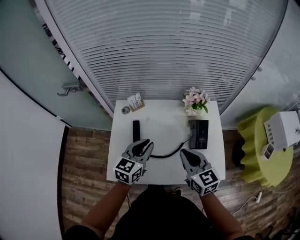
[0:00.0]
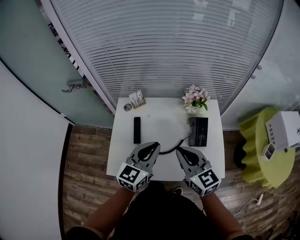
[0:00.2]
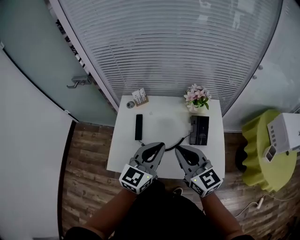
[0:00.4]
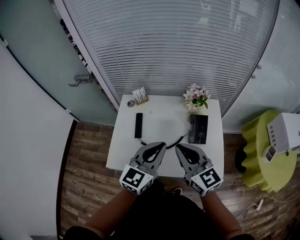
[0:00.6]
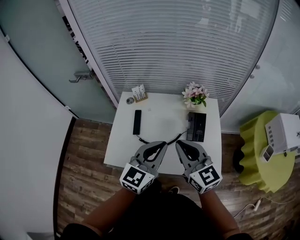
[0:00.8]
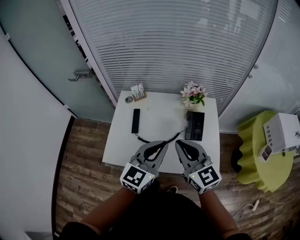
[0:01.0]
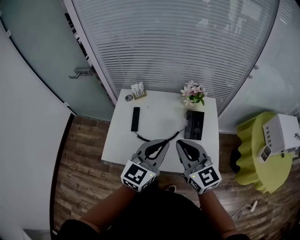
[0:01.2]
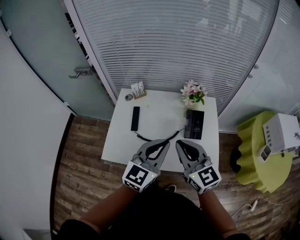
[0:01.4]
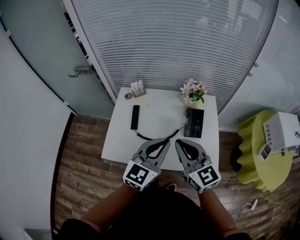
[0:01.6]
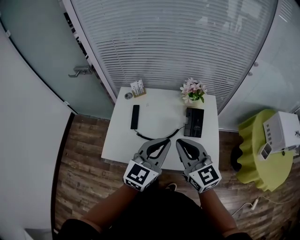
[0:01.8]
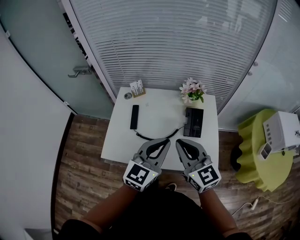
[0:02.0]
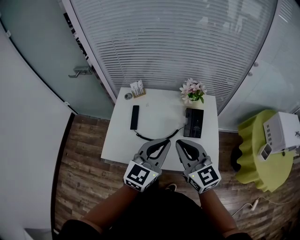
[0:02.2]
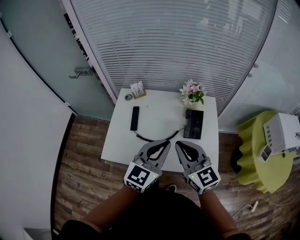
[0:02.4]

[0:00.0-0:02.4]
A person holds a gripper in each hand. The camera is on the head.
0:00.0 to 0:01.2: The left gripper goes approximately 20 cm backward, to the right and upward. Meanwhile the right gripper is displaced backward and upward by roughly 10 cm.
0:01.2 to 0:02.4: The grippers move only a little.

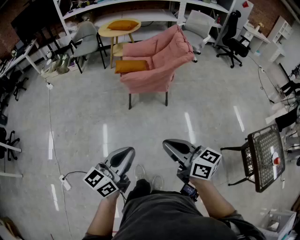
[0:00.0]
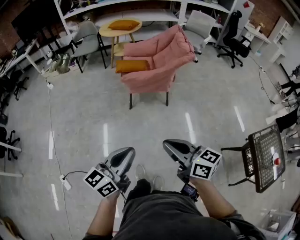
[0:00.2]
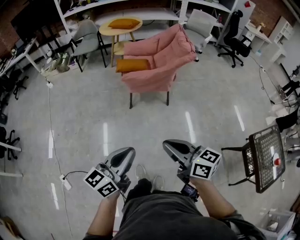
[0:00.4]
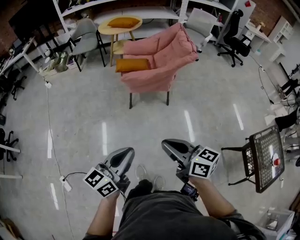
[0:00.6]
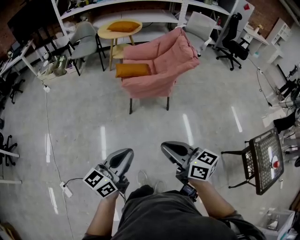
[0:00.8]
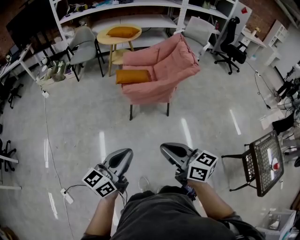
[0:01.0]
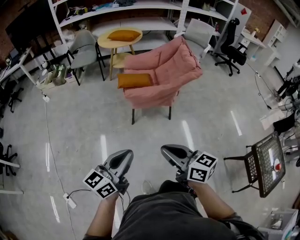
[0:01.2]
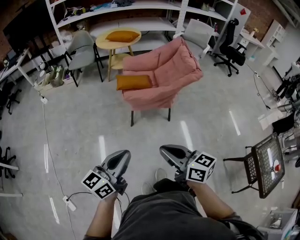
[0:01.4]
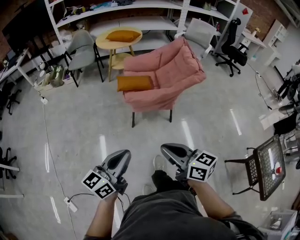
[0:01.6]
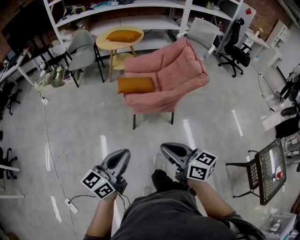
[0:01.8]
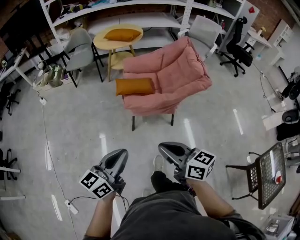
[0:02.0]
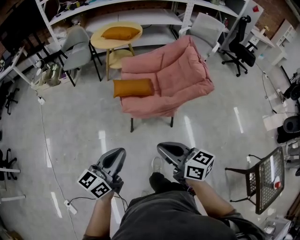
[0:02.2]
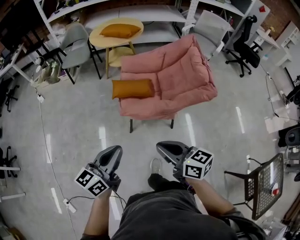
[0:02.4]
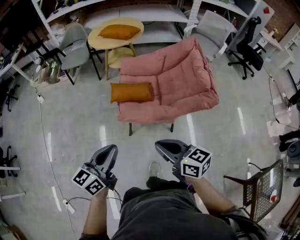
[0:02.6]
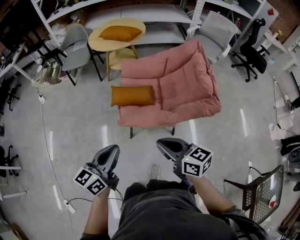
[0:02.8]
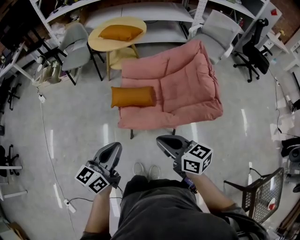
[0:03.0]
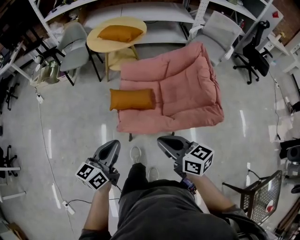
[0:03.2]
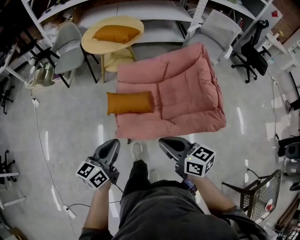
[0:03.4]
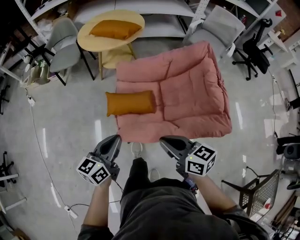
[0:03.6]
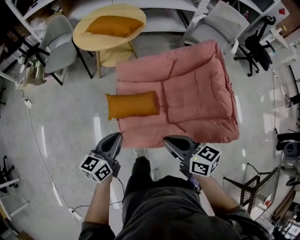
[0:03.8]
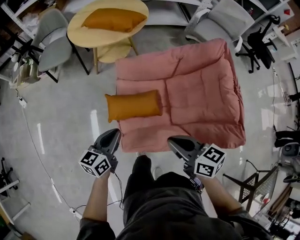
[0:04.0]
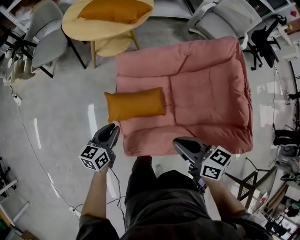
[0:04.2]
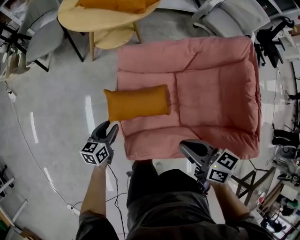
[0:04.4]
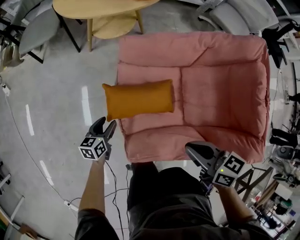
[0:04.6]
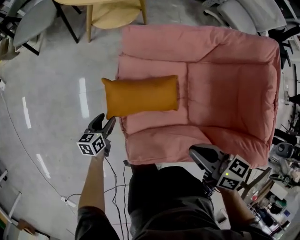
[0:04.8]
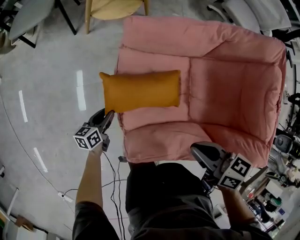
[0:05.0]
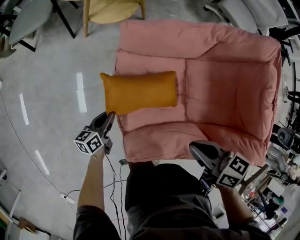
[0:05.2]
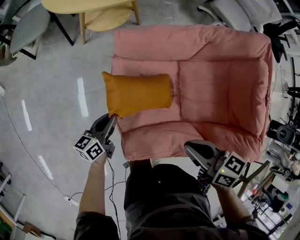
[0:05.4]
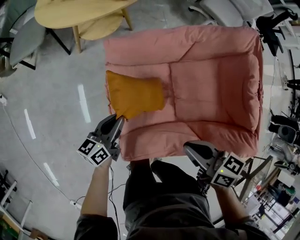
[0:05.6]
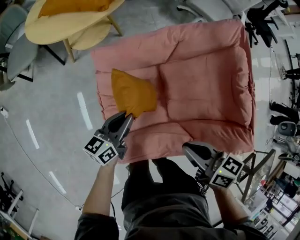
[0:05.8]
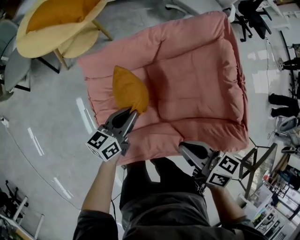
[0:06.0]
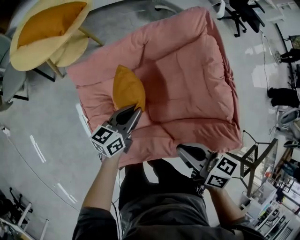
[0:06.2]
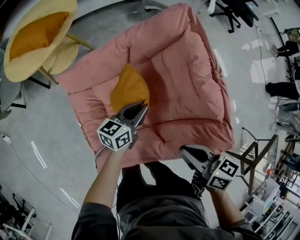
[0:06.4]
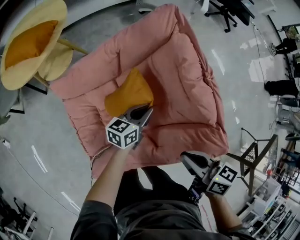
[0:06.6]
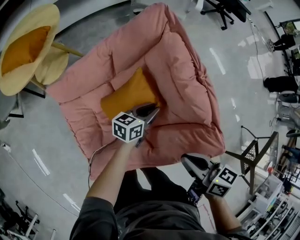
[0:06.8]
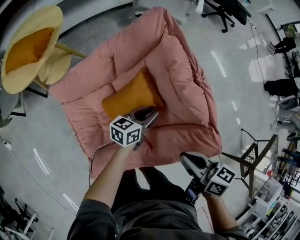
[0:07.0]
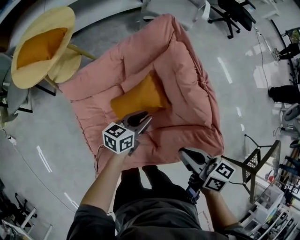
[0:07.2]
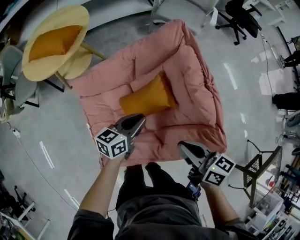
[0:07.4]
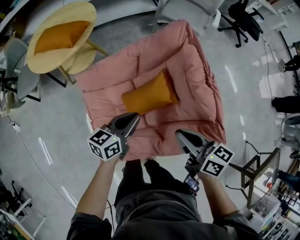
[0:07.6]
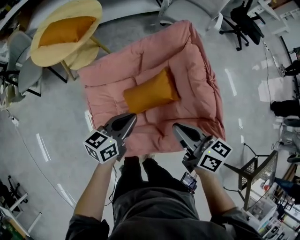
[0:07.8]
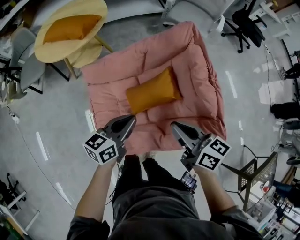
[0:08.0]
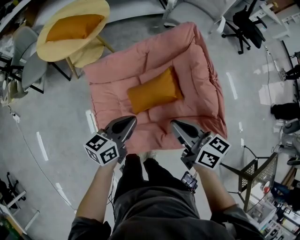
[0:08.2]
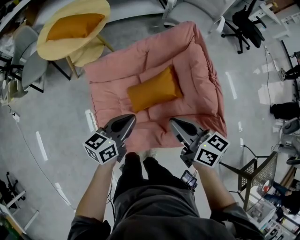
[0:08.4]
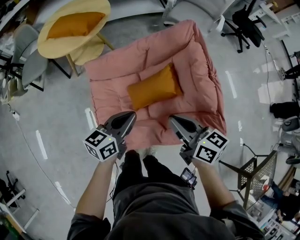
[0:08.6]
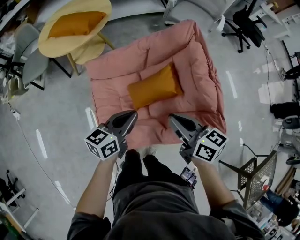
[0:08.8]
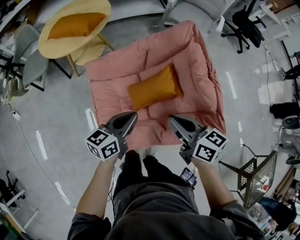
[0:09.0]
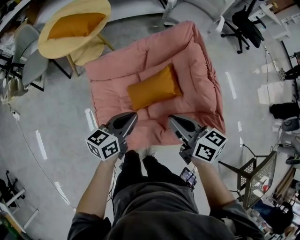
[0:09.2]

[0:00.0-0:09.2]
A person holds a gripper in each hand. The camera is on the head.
0:00.0 to 0:01.6: Both grippers travel together forward and to the left, roughly 25 cm.
0:01.6 to 0:03.0: The two grippers go some 40 cm forward.
0:03.0 to 0:04.6: The left gripper shifts roughly 60 cm downward and forward, rotates roughly 30 degrees, and opens up. Meanwhile the right gripper heads forward and downward, covering approximately 40 cm, and turns by about 20 degrees.
0:04.6 to 0:06.2: The right gripper is displaced to the right by roughly 15 cm; the left gripper heads to the right and upward, covering approximately 40 cm, rotates approximately 30 degrees, and closes up.
0:06.2 to 0:07.6: The left gripper moves upward, roughly 10 cm, and reaches some 20 cm to the right, then returns; the right gripper heads to the right and upward, covering some 10 cm.
0:07.6 to 0:09.2: The right gripper is displaced to the left by some 5 cm; the left gripper shifts some 5 cm backward.

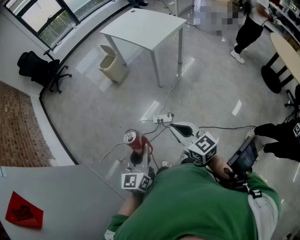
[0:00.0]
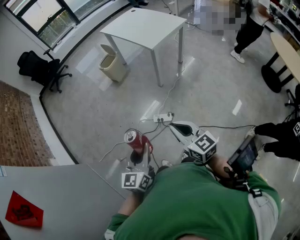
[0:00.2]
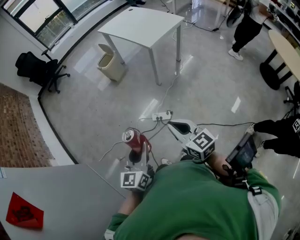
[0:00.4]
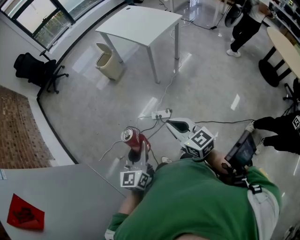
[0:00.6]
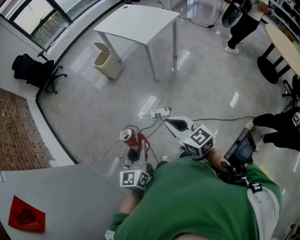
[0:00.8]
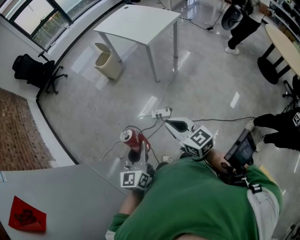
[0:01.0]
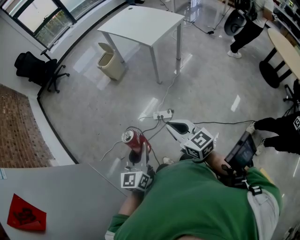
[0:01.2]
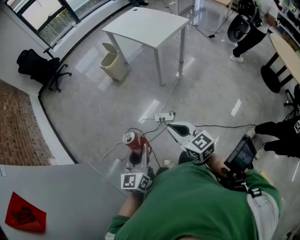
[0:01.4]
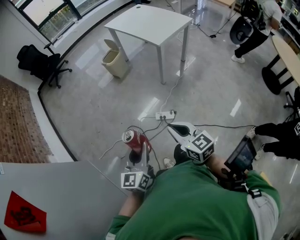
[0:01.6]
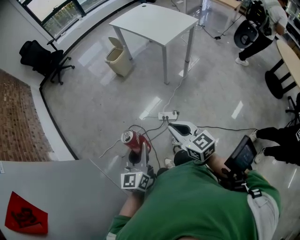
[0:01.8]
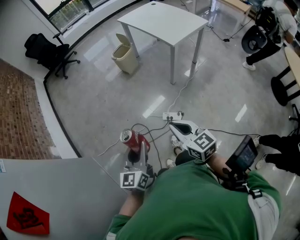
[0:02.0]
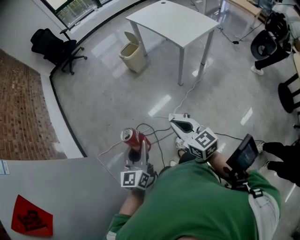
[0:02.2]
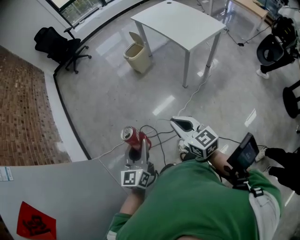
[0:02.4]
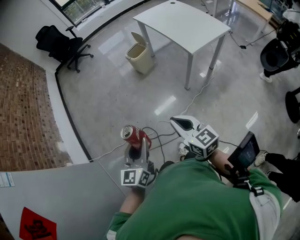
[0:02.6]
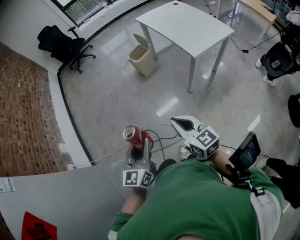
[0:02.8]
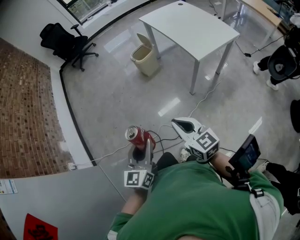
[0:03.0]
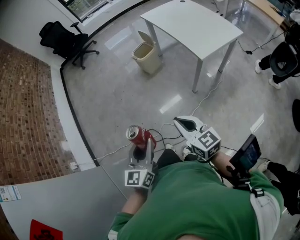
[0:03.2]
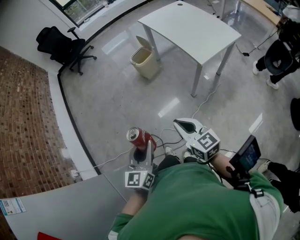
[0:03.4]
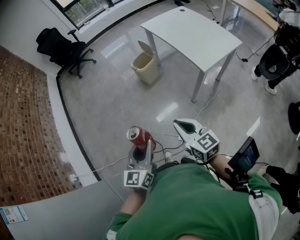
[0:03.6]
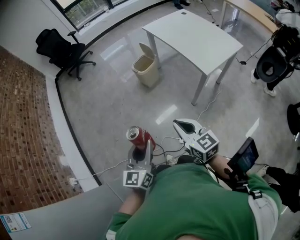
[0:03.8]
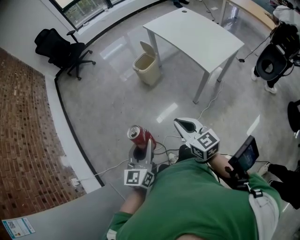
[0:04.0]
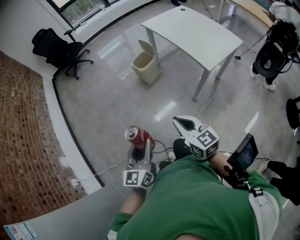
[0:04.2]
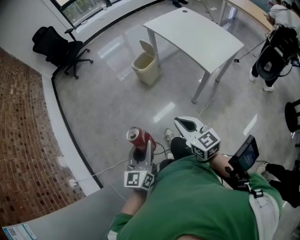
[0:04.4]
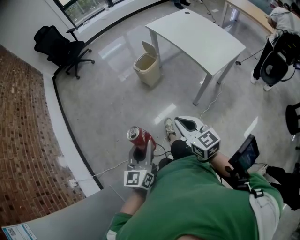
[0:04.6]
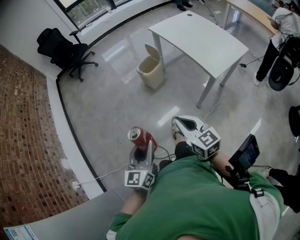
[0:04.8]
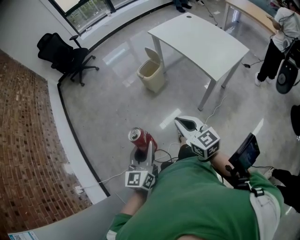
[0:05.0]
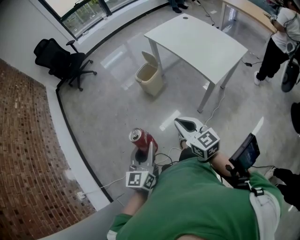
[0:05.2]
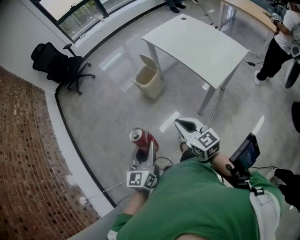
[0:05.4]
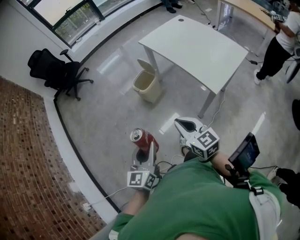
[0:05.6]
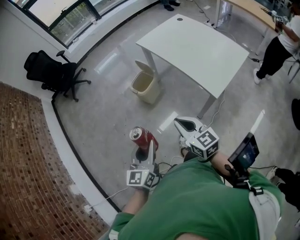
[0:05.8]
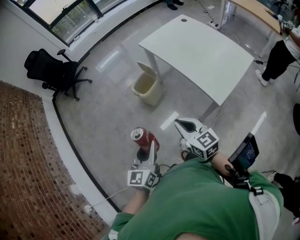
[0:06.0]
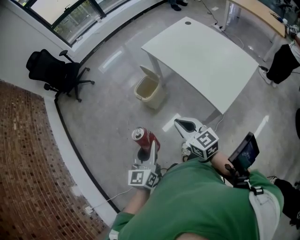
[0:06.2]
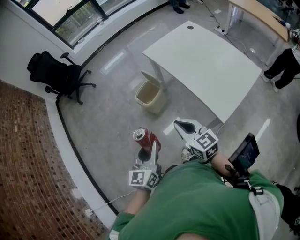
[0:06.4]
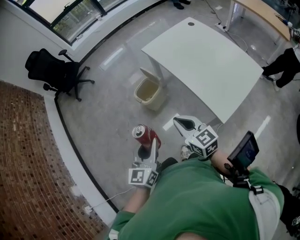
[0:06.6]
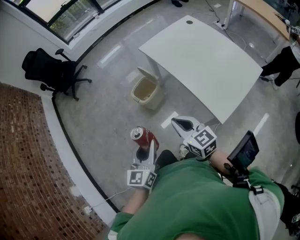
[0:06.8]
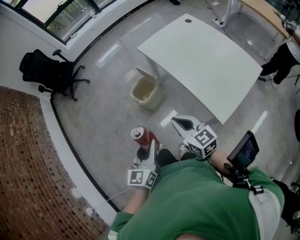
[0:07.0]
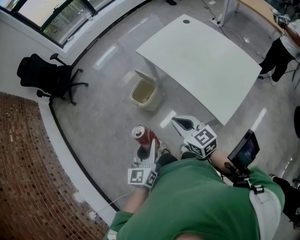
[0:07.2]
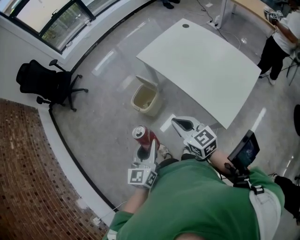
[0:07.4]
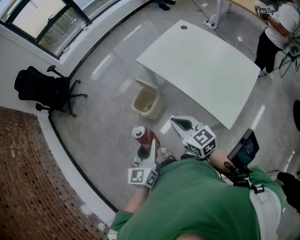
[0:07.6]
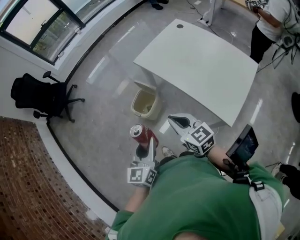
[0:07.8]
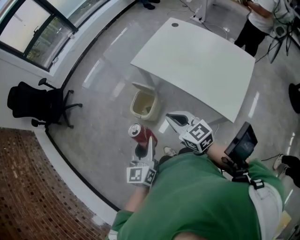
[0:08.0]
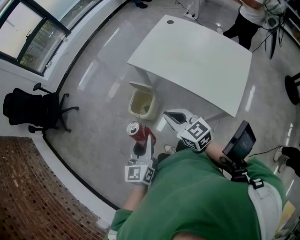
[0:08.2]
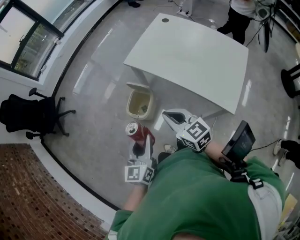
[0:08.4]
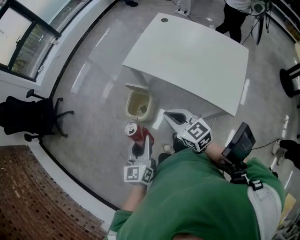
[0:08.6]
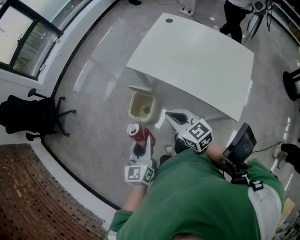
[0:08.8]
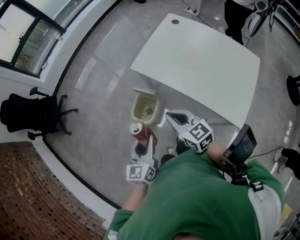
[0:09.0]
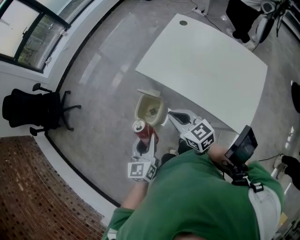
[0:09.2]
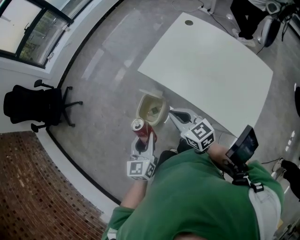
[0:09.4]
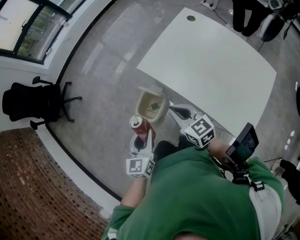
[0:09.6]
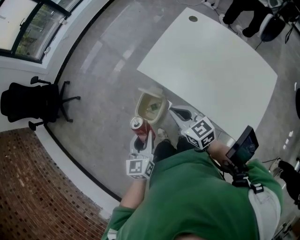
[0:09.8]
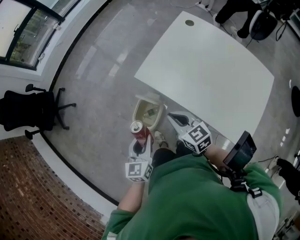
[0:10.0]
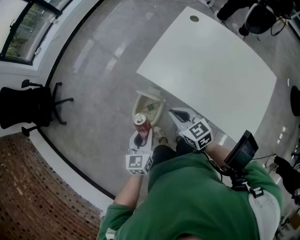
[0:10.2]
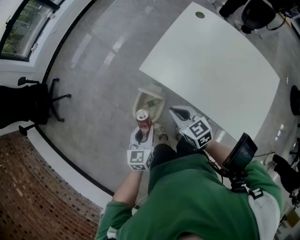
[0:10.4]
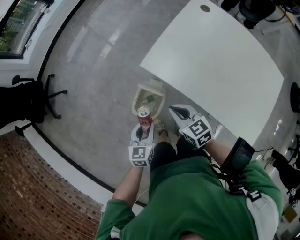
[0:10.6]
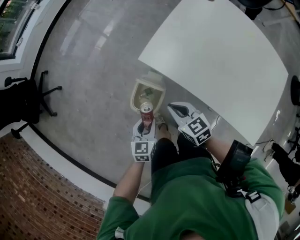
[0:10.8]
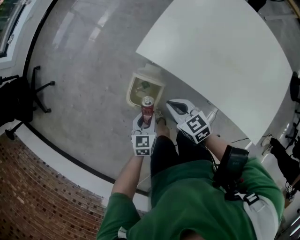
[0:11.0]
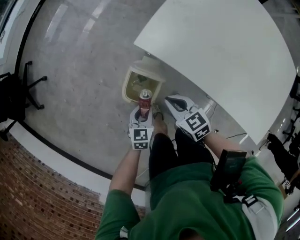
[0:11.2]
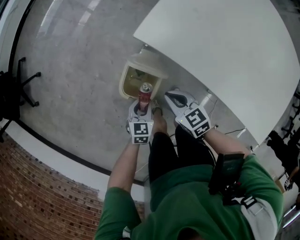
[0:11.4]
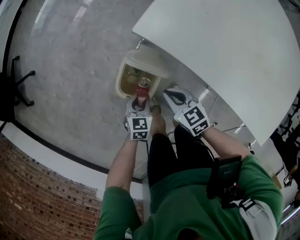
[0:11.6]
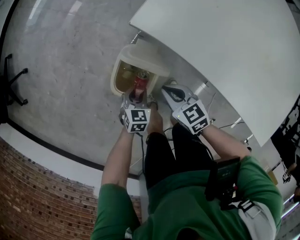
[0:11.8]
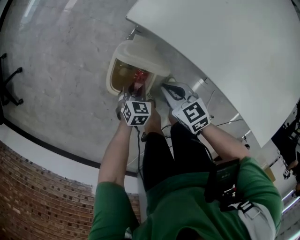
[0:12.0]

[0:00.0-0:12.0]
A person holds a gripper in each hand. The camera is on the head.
0:00.0 to 0:01.6: Both grippers move to the left, approximately 5 cm.
0:01.6 to 0:03.0: Both grippers travel together forward, roughly 20 cm.
0:03.0 to 0:04.4: Both grippers move forward and to the left, some 15 cm.
0:04.4 to 0:06.0: The grippers both shift forward by approximately 25 cm.
0:06.0 to 0:07.6: The grippers both shift forward by approximately 20 cm.
0:07.6 to 0:09.0: The grippers both shift forward by approximately 15 cm.
0:09.0 to 0:10.4: Both grippers move forward and downward, about 20 cm.
0:10.4 to 0:12.0: Both grippers move downward, approximately 35 cm. The left gripper swivels some 40 degrees.
